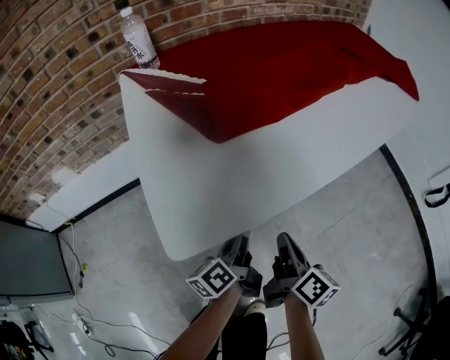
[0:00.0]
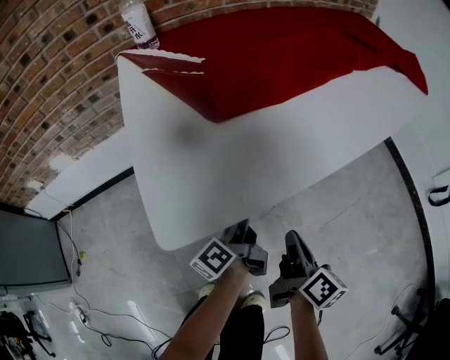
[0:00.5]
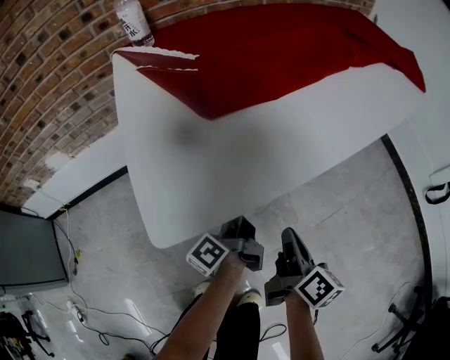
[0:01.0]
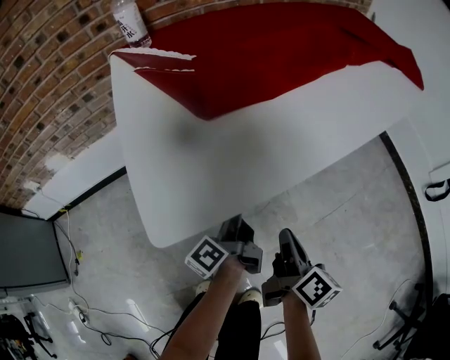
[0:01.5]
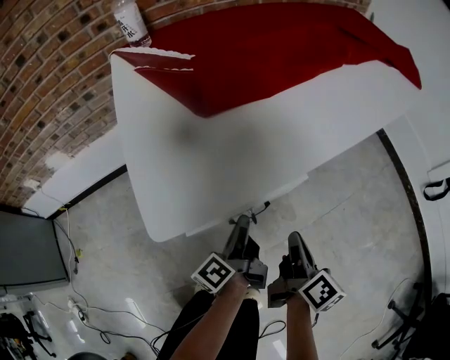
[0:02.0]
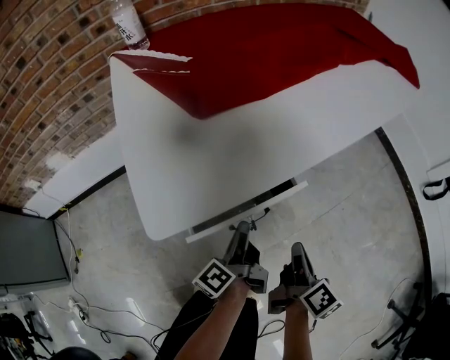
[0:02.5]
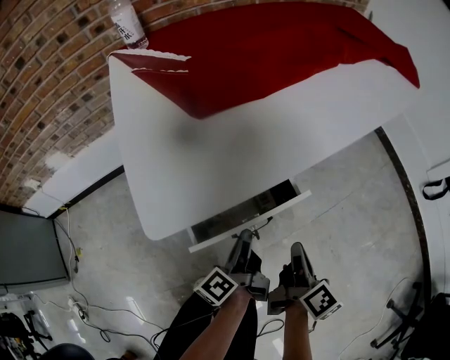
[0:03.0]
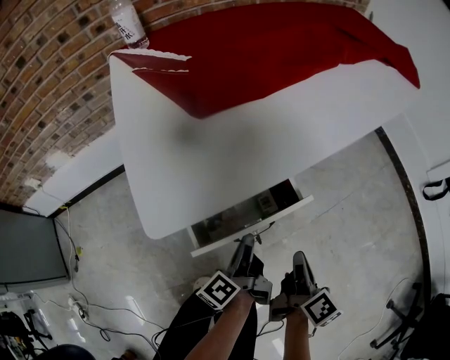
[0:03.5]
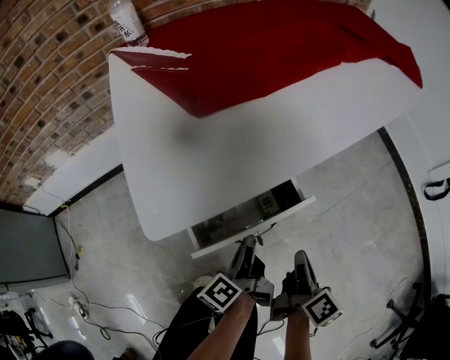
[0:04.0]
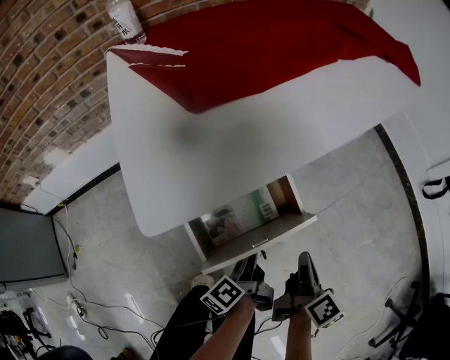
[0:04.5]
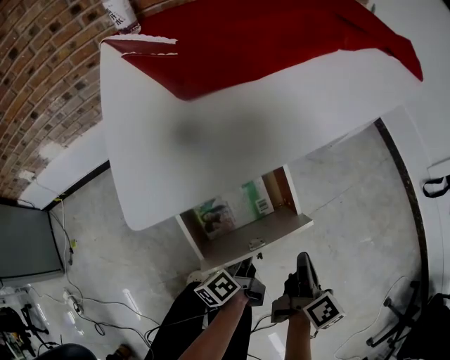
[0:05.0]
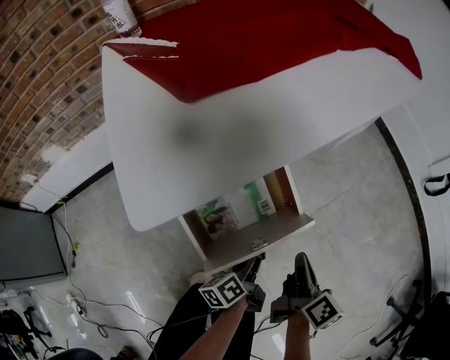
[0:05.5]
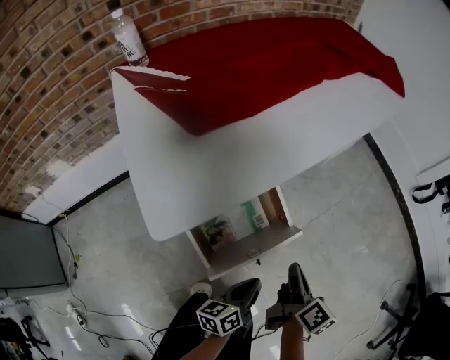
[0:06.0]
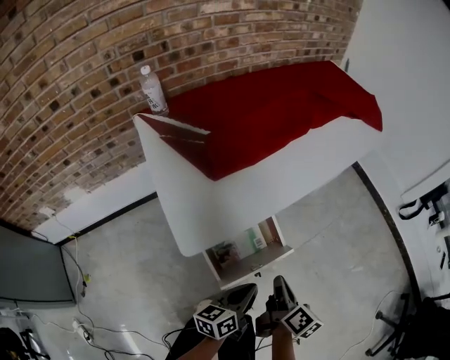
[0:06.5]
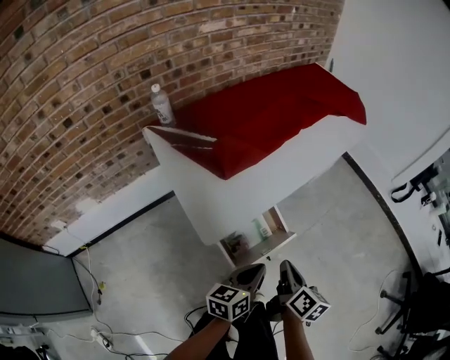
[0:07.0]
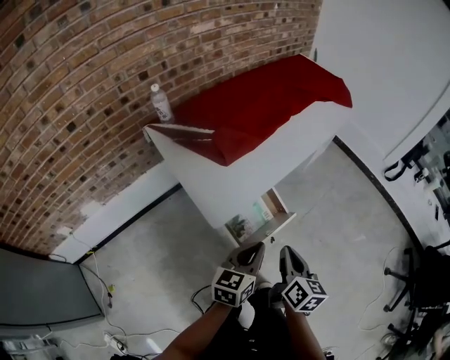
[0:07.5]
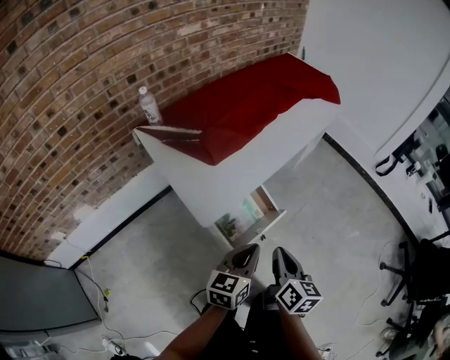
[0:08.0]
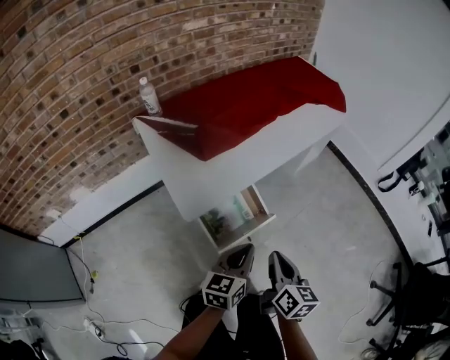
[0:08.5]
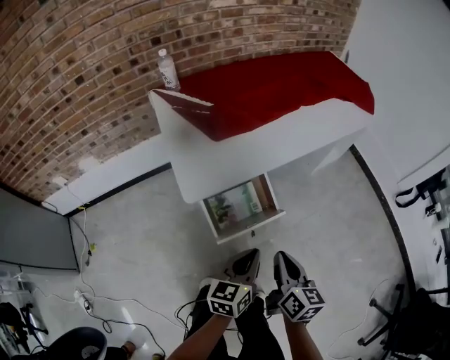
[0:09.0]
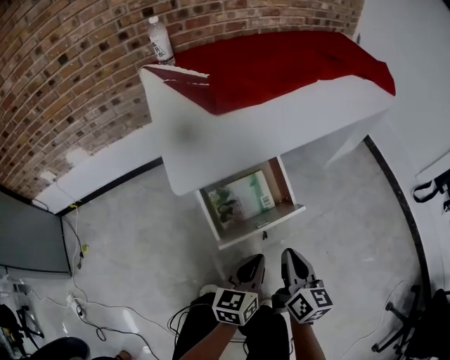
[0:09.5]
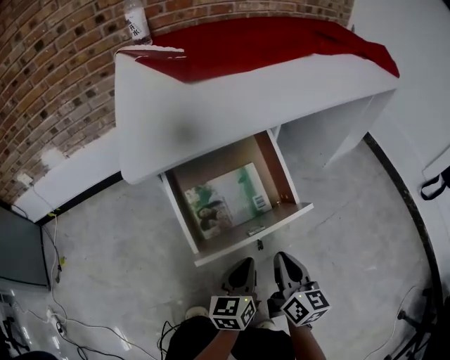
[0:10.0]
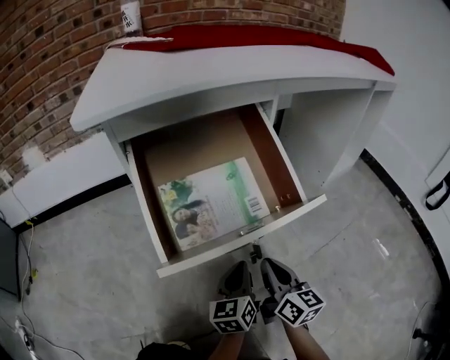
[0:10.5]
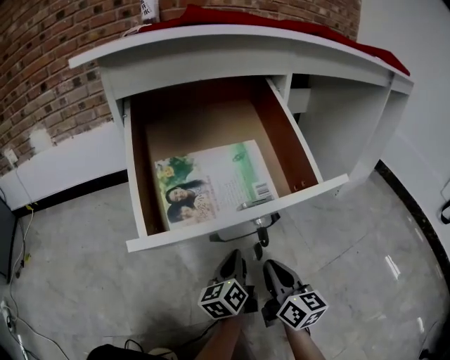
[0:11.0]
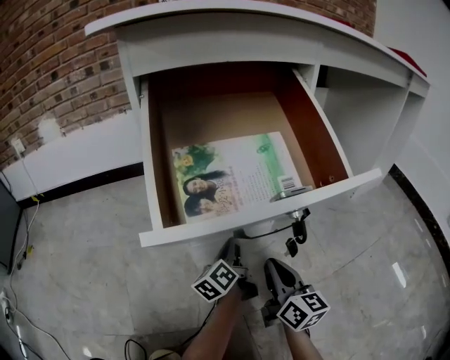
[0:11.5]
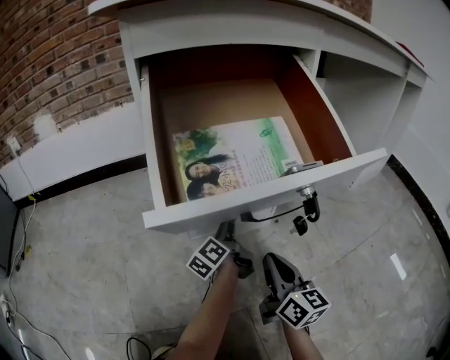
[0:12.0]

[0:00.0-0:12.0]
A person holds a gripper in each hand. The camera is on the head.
0:00.0 to 0:02.0: The right gripper shifts approximately 5 cm to the right. Meanwhile the left gripper changes its angle by approximately 20 degrees, and opens, then closes once more.
0:02.0 to 0:04.0: The left gripper moves backward, approximately 5 cm; the right gripper shifts by some 5 cm.
0:04.0 to 0:06.0: The left gripper moves backward and to the right, roughly 15 cm, changes its angle by some 50 degrees, and opens, then closes again.
0:06.0 to 0:08.0: The right gripper shifts about 25 cm upward and backward, and swivels some 20 degrees. Meanwhile the left gripper is displaced upward by roughly 30 cm, and swivels roughly 40 degrees.
0:08.0 to 0:10.0: Both grippers move downward, about 40 cm. The right gripper turns by about 20 degrees. Meanwhile the left gripper rotates roughly 30 degrees.
0:10.0 to 0:12.0: The right gripper is displaced downward by roughly 25 cm, while the left gripper is displaced downward and forward by approximately 35 cm, rolls counterclockwise, seen from behind, by roughly 40 degrees, and opens up.

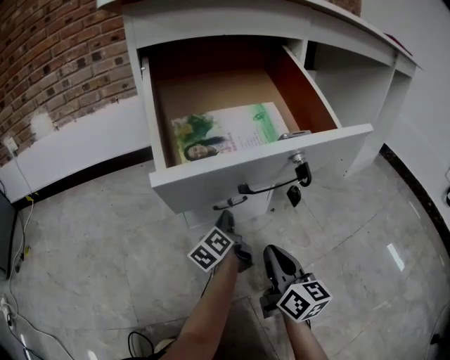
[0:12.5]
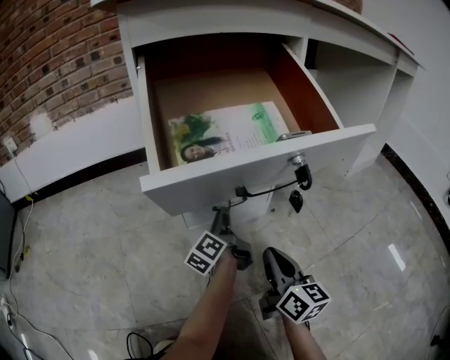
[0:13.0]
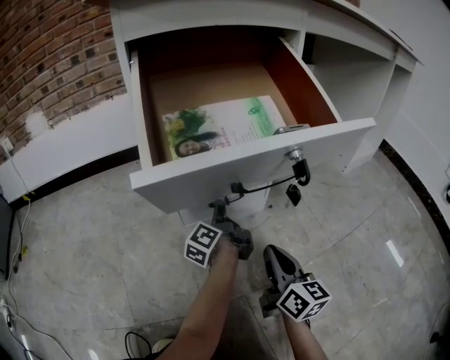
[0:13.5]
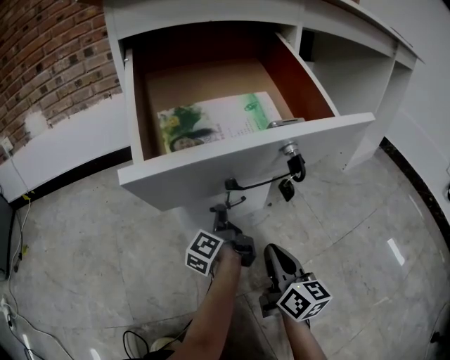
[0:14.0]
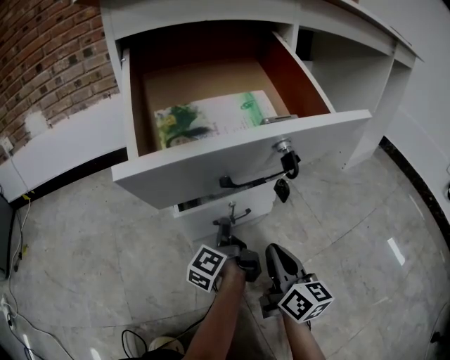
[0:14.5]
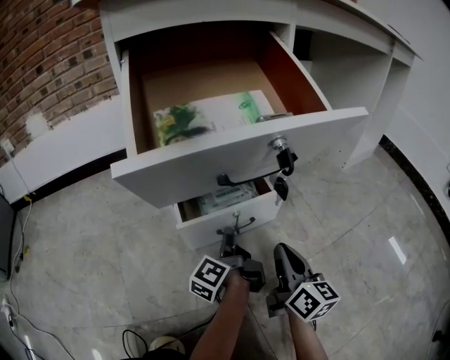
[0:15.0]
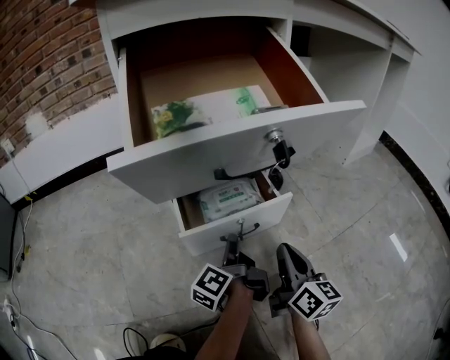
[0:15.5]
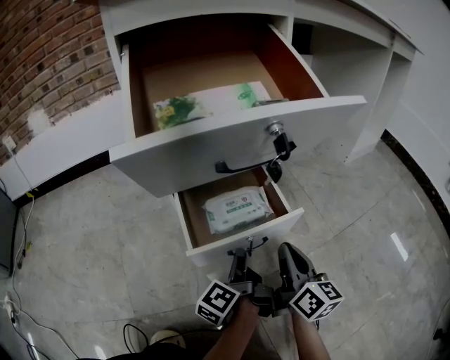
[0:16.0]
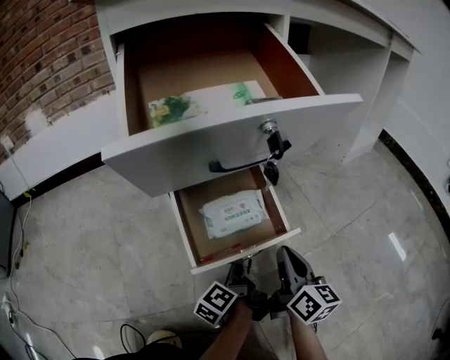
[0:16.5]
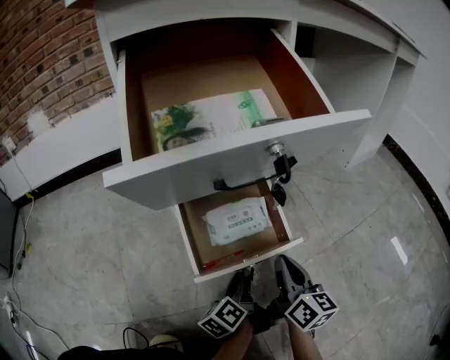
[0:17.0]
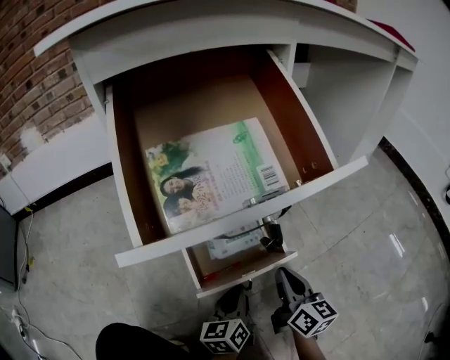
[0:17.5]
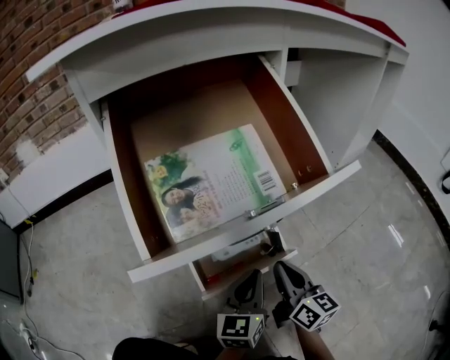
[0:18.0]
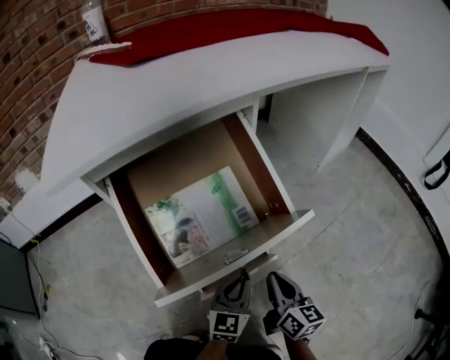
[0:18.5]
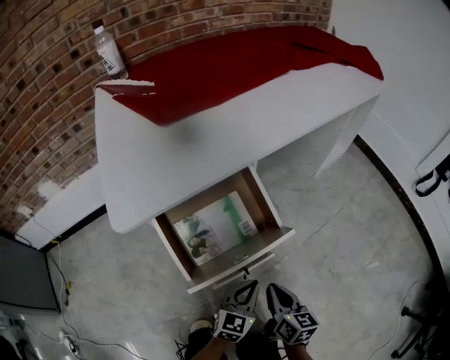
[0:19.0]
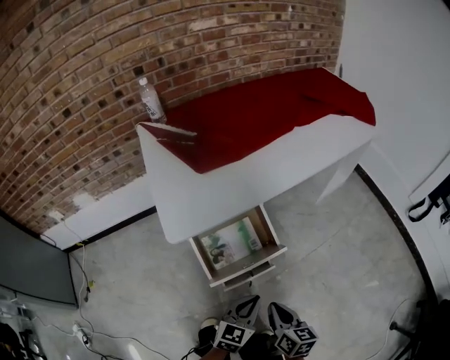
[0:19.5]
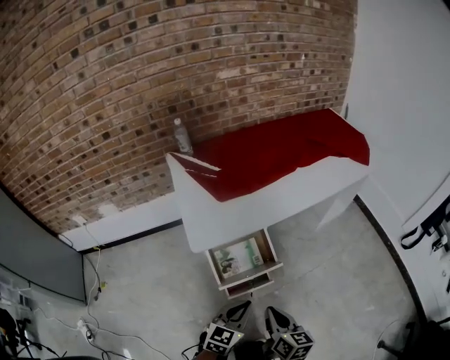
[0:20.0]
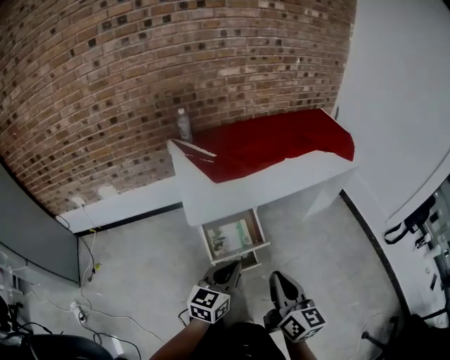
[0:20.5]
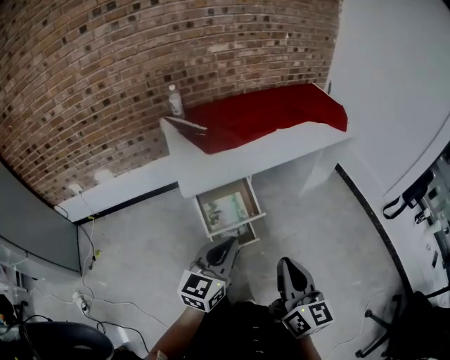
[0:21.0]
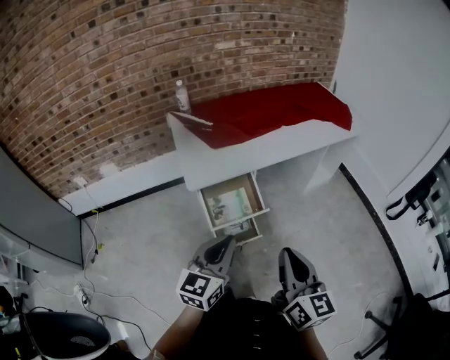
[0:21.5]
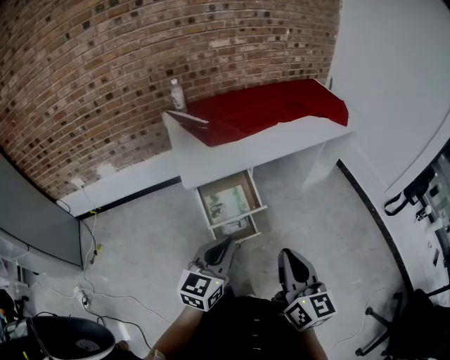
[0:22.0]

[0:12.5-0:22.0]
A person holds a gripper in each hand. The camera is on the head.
0:12.5 to 0:14.5: The left gripper travels backward by some 5 cm, and swivels approximately 20 degrees.
0:14.5 to 0:16.5: The left gripper travels backward and downward by about 15 cm. Meanwhile the right gripper ends up roughly 5 cm from where it was.
0:16.5 to 0:18.0: The left gripper goes roughly 15 cm upward, and twists some 70 degrees clockwise, seen from behind.
0:18.0 to 0:20.0: The two grippers go about 50 cm upward. The left gripper swivels approximately 20 degrees.
0:20.0 to 0:22.0: Both grippers travel together upward and backward, about 20 cm. The right gripper rotates about 20 degrees.

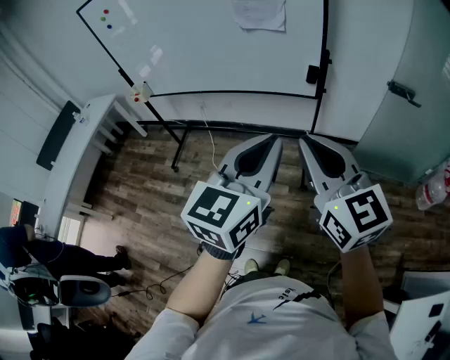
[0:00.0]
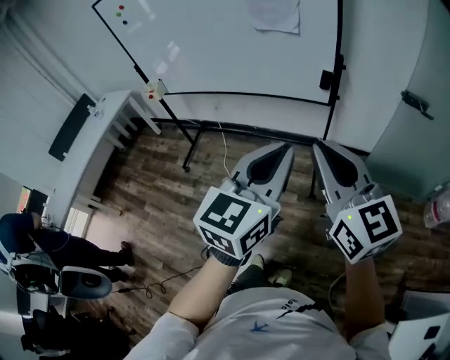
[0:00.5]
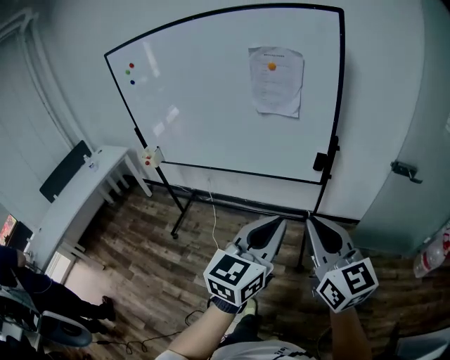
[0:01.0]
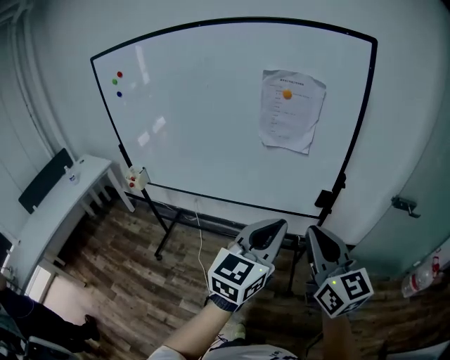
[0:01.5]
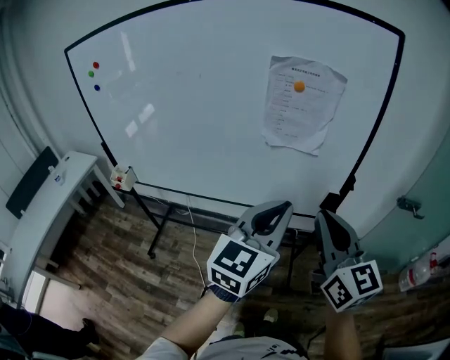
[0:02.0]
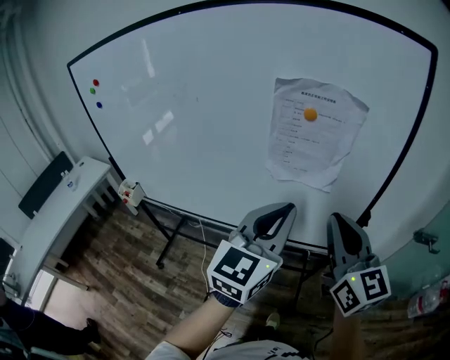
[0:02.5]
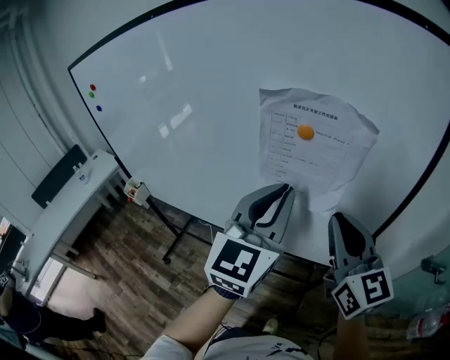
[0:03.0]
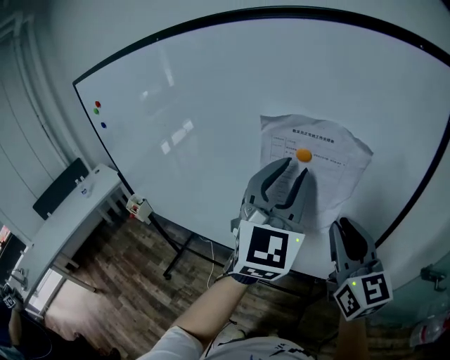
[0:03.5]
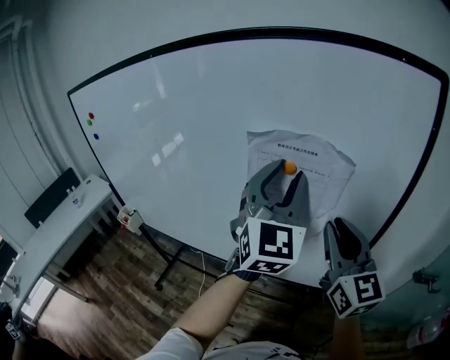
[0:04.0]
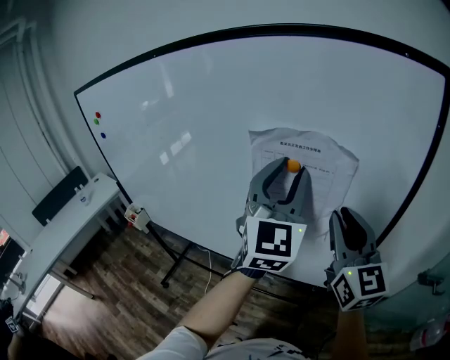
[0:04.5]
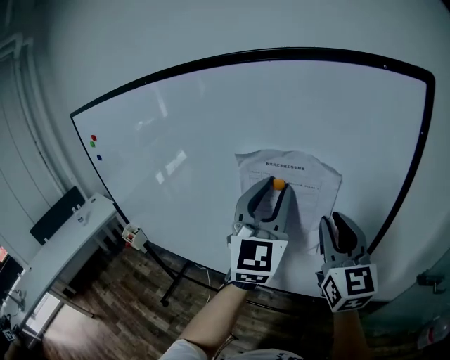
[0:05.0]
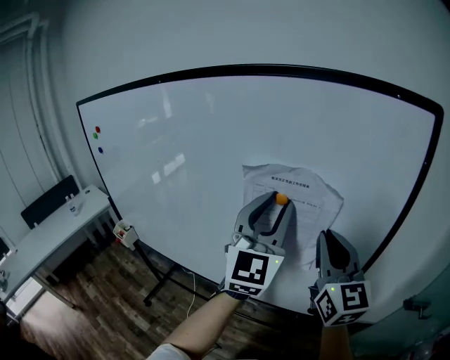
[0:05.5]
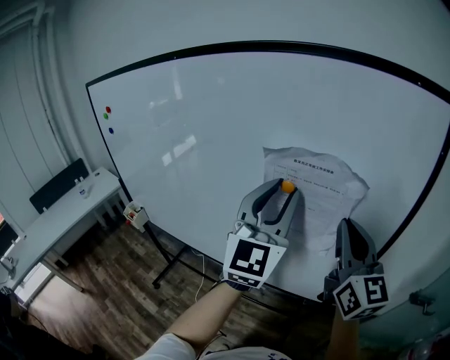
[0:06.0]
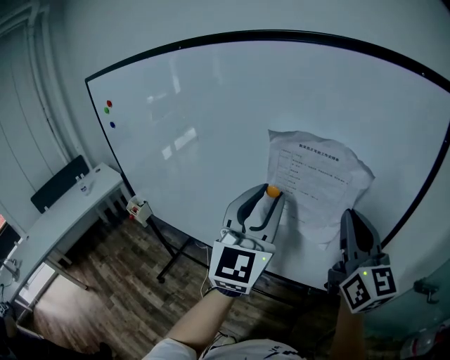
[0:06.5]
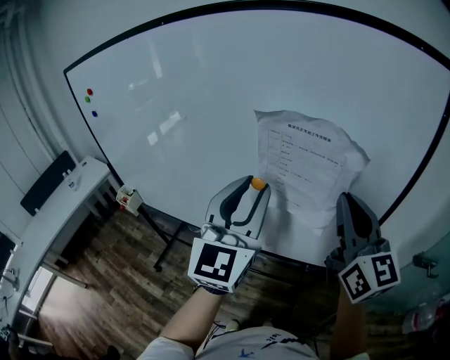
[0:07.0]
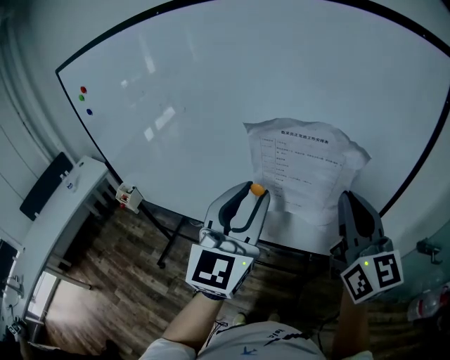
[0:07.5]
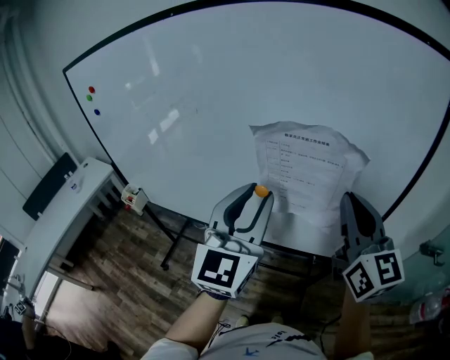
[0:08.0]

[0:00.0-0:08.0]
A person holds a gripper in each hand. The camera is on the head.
0:00.0 to 0:02.0: The grippers both shift forward by some 35 cm.
0:02.0 to 0:04.0: The right gripper is displaced forward by some 25 cm. Meanwhile the left gripper goes about 30 cm forward and upward, rotates some 40 degrees, and opens.
0:04.0 to 0:06.0: The grippers move only a little.
0:06.0 to 0:08.0: The left gripper shifts by some 5 cm.
